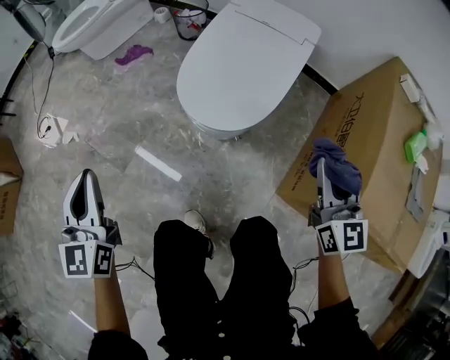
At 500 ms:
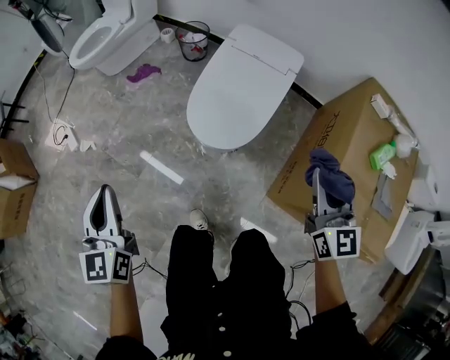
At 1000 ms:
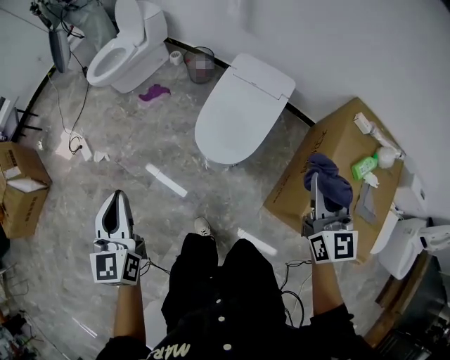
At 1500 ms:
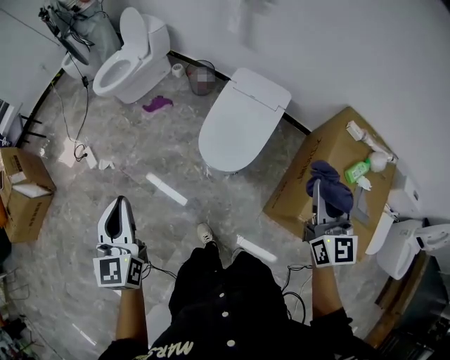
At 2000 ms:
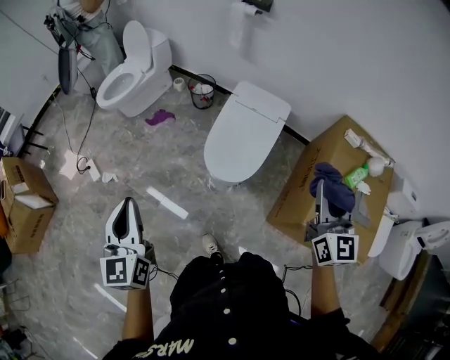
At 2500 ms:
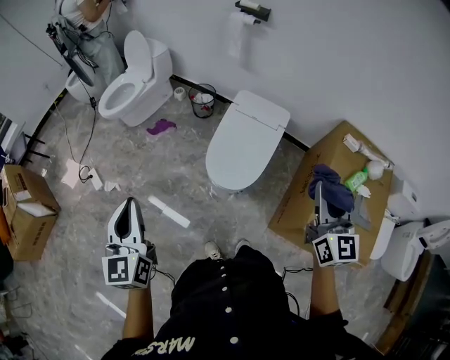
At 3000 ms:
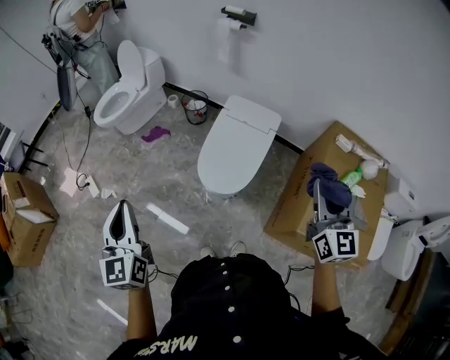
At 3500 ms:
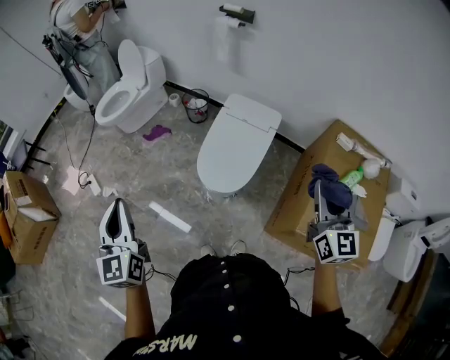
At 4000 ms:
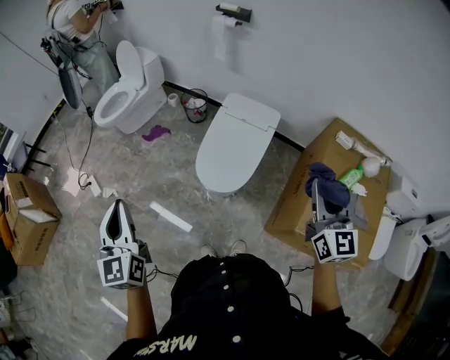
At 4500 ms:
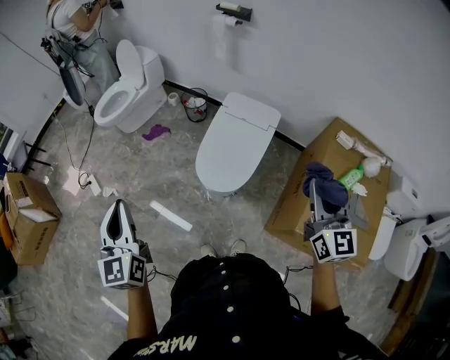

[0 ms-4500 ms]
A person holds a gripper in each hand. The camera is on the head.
0 ms to 2000 ms: The grippers both shift upward by about 40 cm.
2000 ms to 4500 ms: The right gripper is displaced to the right by approximately 5 cm.

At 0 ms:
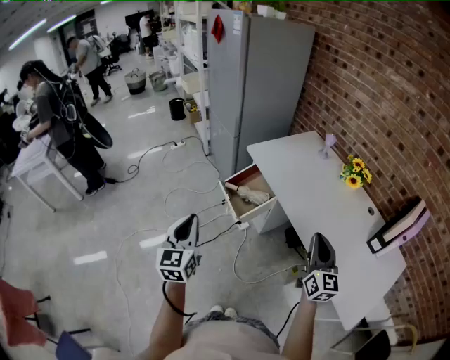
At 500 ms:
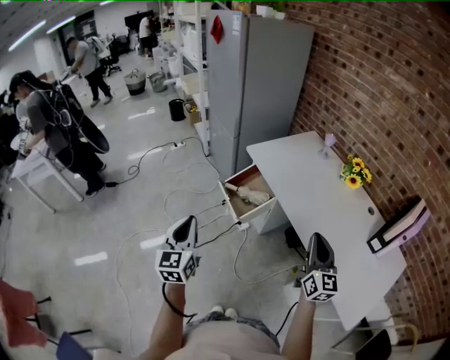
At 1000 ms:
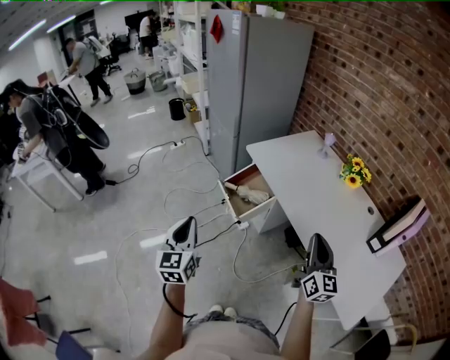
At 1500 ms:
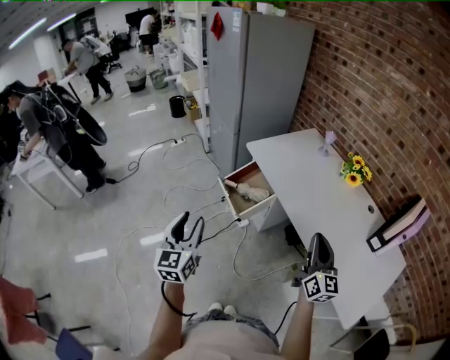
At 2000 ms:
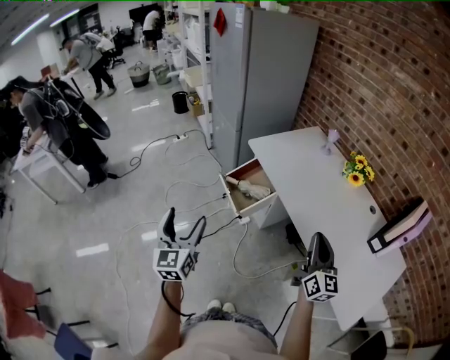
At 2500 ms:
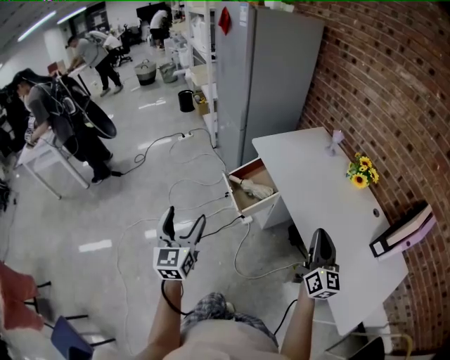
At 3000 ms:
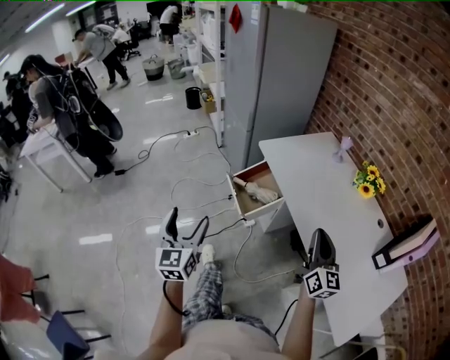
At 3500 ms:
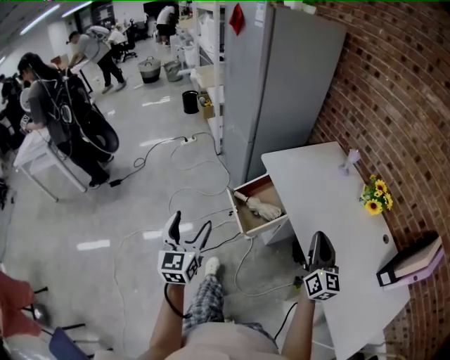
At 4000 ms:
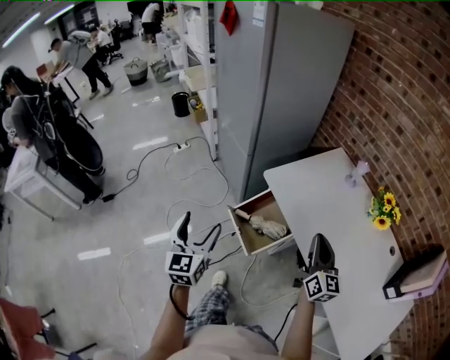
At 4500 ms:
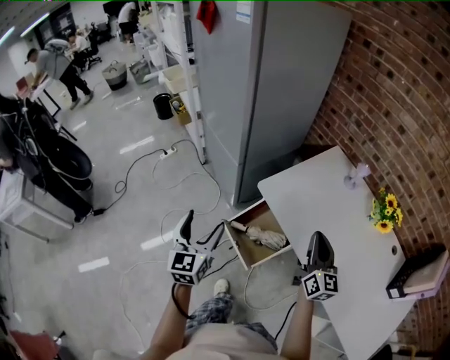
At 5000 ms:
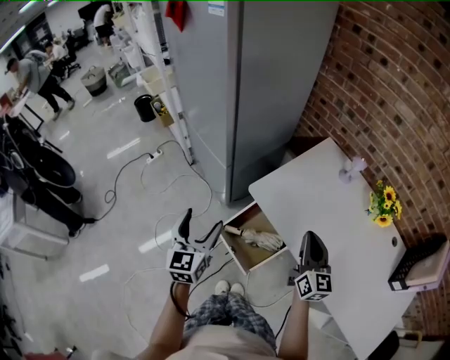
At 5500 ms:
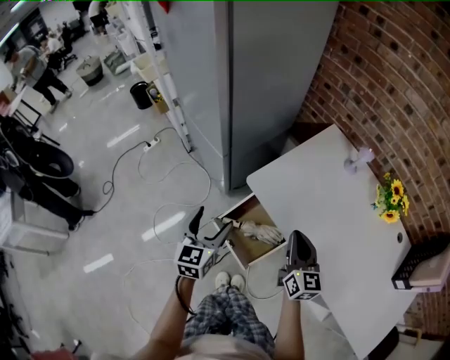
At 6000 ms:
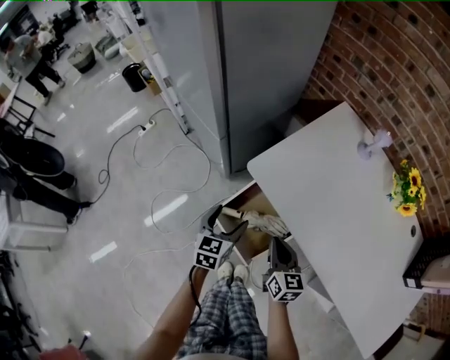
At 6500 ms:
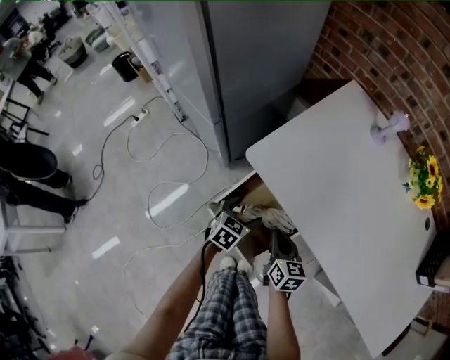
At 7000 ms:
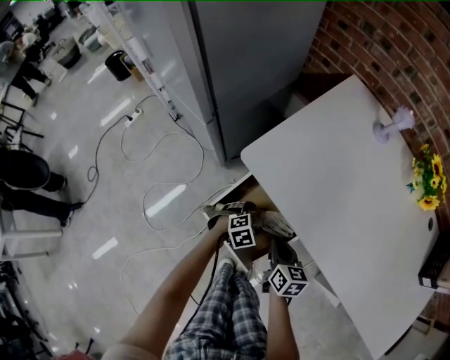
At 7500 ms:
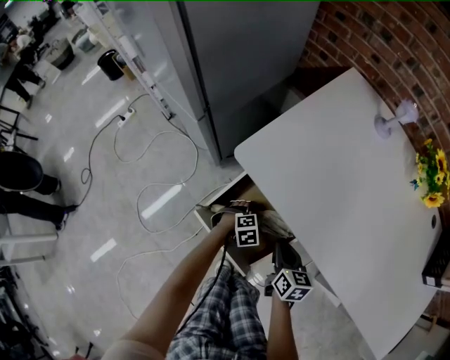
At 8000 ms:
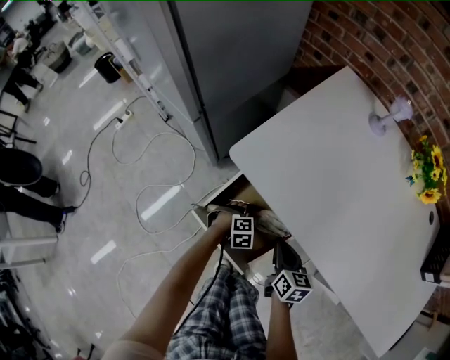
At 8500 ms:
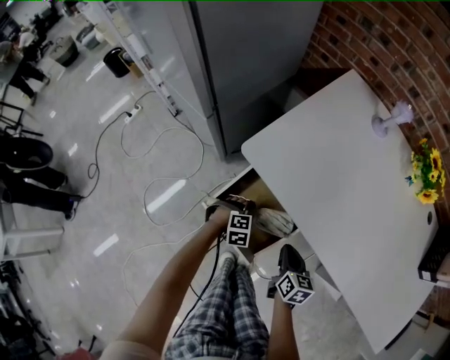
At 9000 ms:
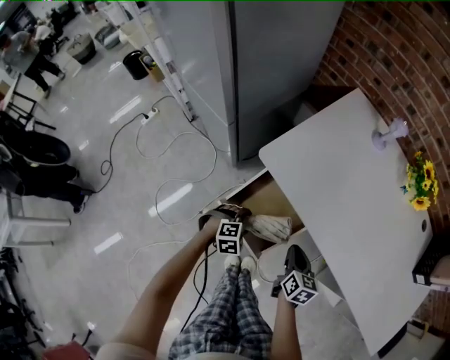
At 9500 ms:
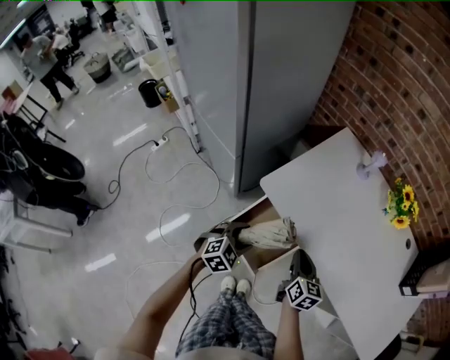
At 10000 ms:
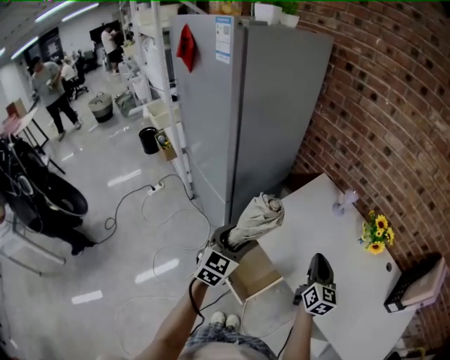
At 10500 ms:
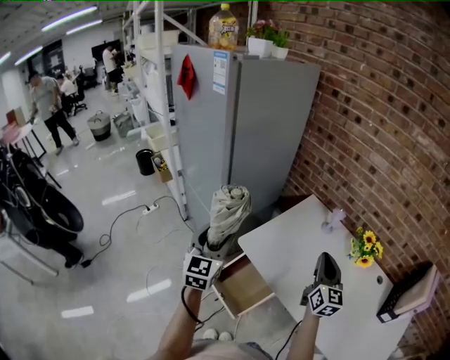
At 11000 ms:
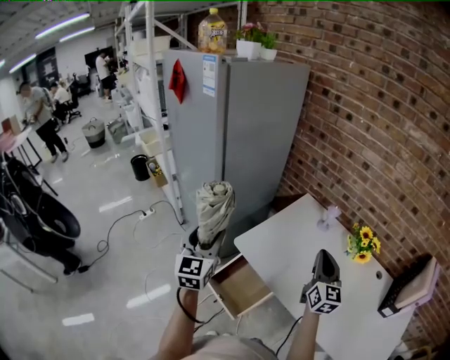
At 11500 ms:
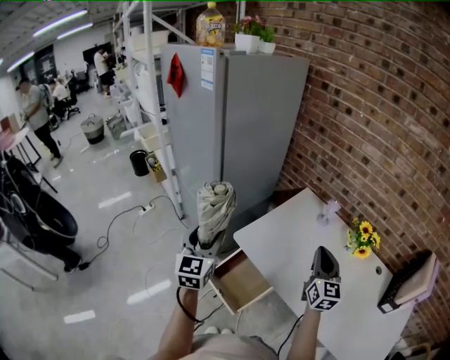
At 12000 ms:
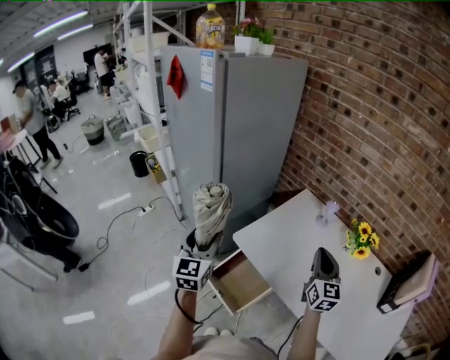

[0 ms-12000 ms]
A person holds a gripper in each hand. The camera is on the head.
0 ms to 2000 ms: The left gripper opens up.
2000 ms to 4000 ms: The two grippers go approximately 30 cm forward.
4000 ms to 6000 ms: The right gripper heads downward, forward and to the left, covering approximately 30 cm, and turns by some 20 degrees. The left gripper goes roughly 40 cm forward and downward, and changes its angle by about 40 degrees.
6000 ms to 8000 ms: The left gripper moves downward, approximately 30 cm, and tilts its fingers approximately 40 degrees downward. The right gripper heads downward, covering some 20 cm.
8000 ms to 10000 ms: Both grippers travel together upward, about 50 cm. The left gripper tips its fingers upward by approximately 60 degrees, while the right gripper rotates some 30 degrees.
10000 ms to 12000 ms: The right gripper is displaced upward by about 10 cm, while the left gripper goes approximately 10 cm upward and to the left, and changes its angle by approximately 20 degrees.

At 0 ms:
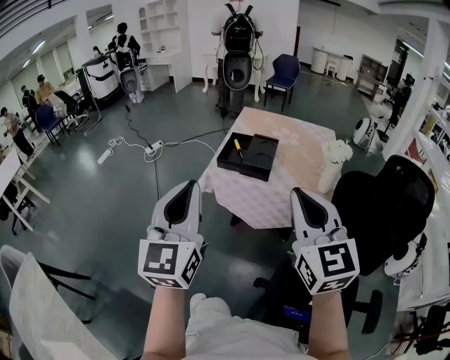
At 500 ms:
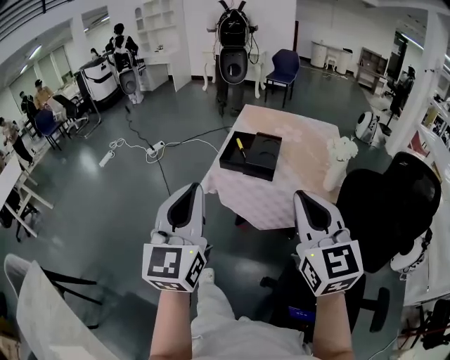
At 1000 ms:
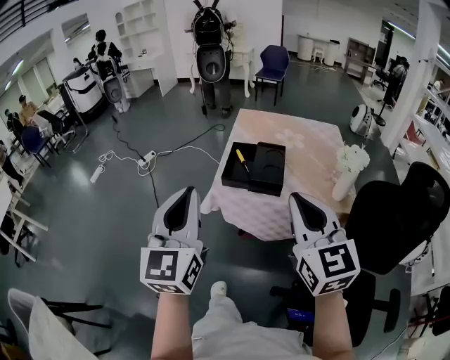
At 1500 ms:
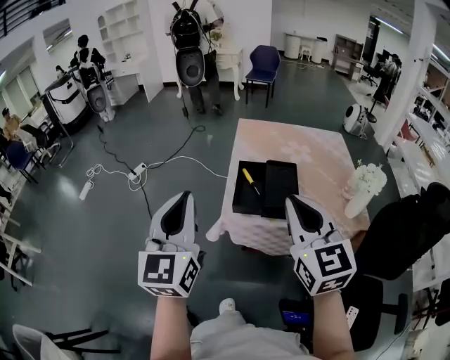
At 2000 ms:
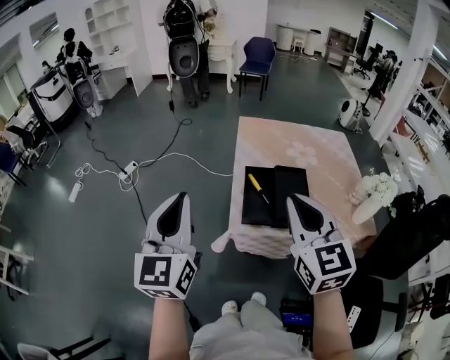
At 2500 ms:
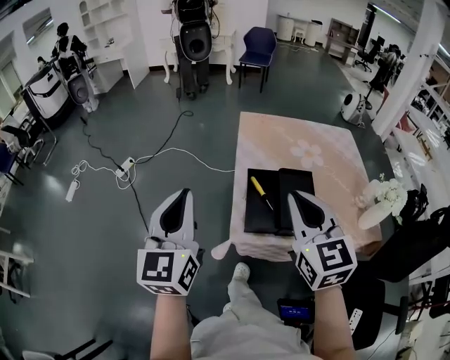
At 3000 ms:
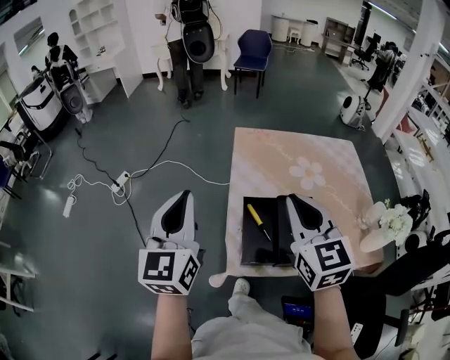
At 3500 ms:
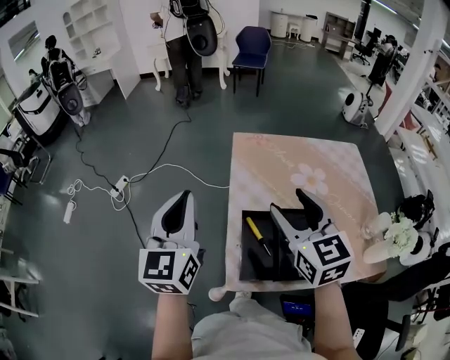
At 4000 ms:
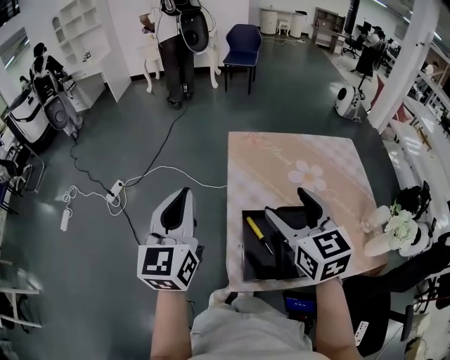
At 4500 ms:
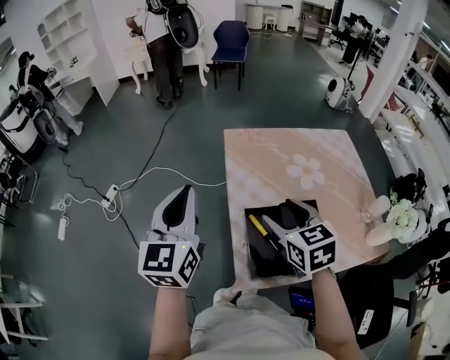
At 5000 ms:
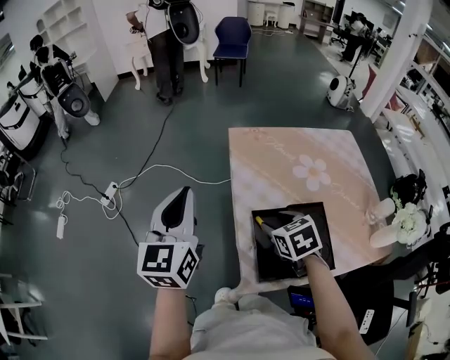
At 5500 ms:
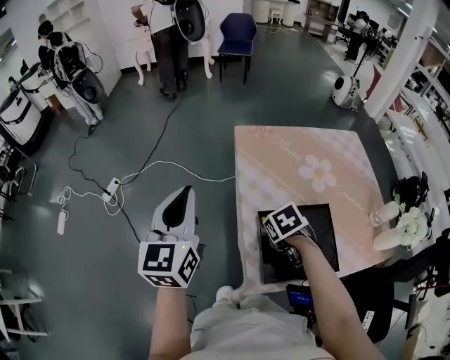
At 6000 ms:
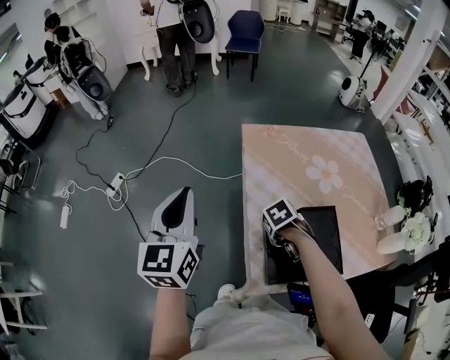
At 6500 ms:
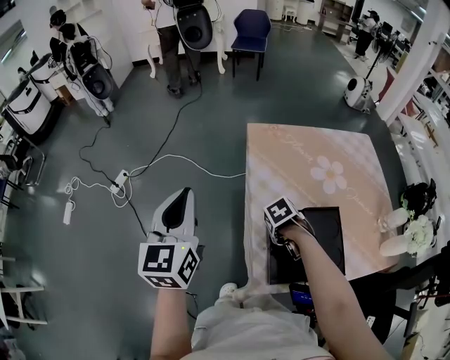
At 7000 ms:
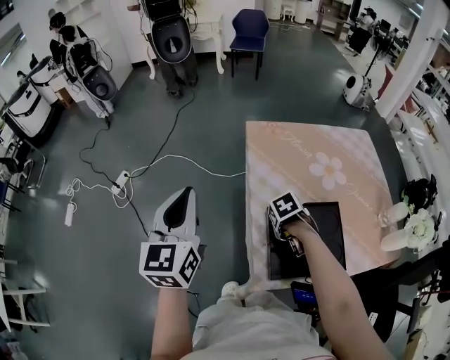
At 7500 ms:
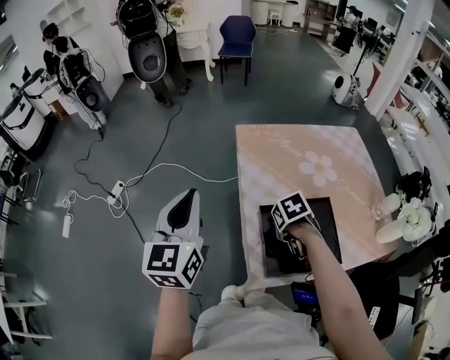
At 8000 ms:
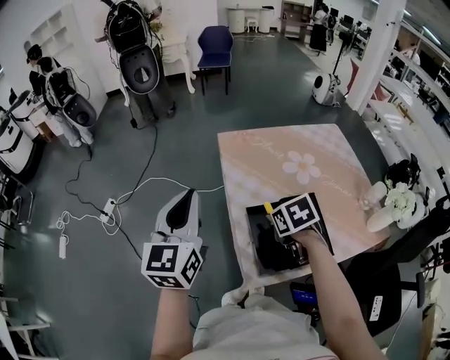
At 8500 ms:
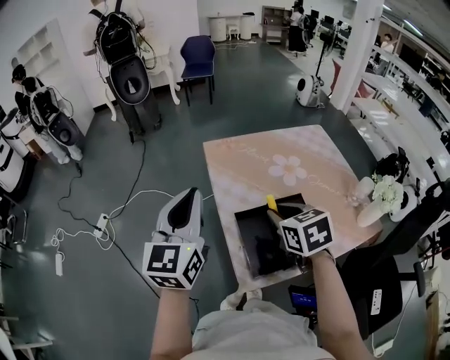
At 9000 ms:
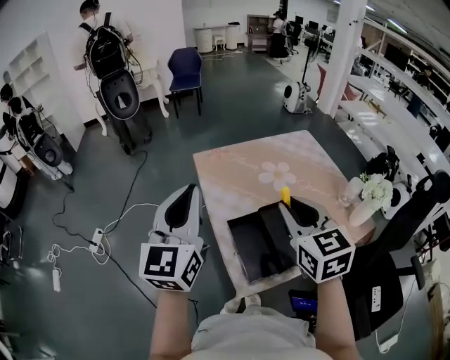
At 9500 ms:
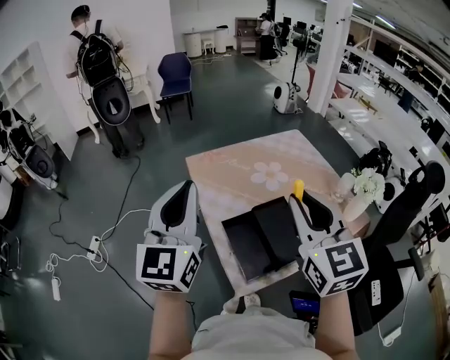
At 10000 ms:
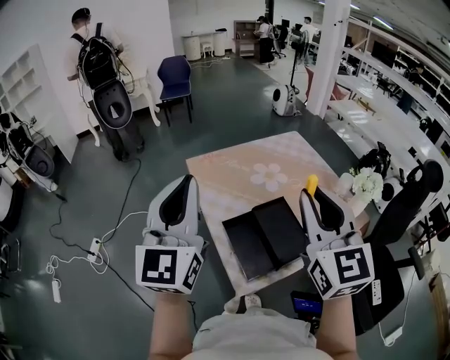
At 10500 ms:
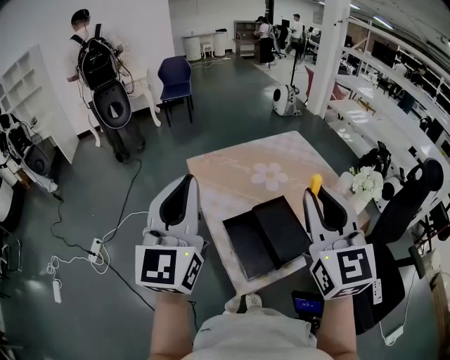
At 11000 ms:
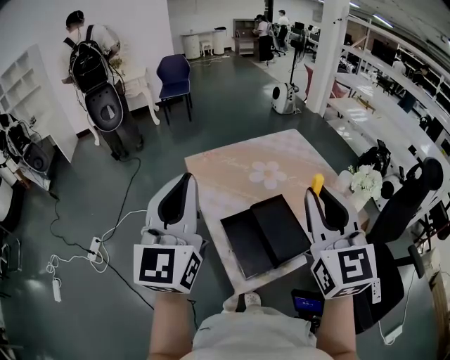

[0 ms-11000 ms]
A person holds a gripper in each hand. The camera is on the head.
0 ms to 2000 ms: The two grippers go some 40 cm forward and to the left.
2000 ms to 3500 ms: Both grippers move forward, roughly 25 cm. The right gripper opens up.
3500 ms to 5500 ms: The left gripper heads forward, covering roughly 5 cm; the right gripper goes approximately 25 cm downward, tips its fingers downward by some 60 degrees, and opens and closes again.
5500 ms to 7500 ms: The right gripper closes its fingers.
7500 ms to 9000 ms: The left gripper ends up some 15 cm from where it was, and rotates about 20 degrees. The right gripper goes some 30 cm upward, and tips its fingers upward by about 60 degrees.
9000 ms to 11000 ms: The left gripper goes roughly 5 cm upward; the right gripper goes some 15 cm upward, backward and to the right, and changes its angle by some 20 degrees.
